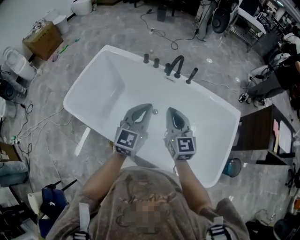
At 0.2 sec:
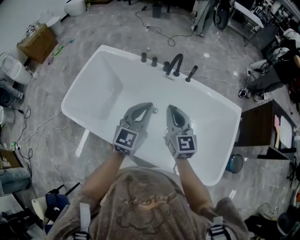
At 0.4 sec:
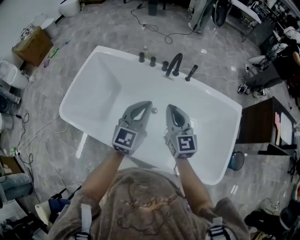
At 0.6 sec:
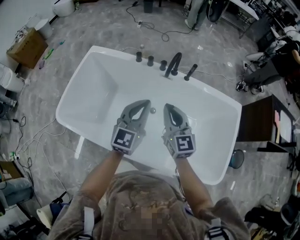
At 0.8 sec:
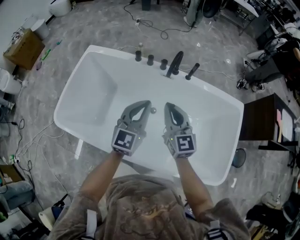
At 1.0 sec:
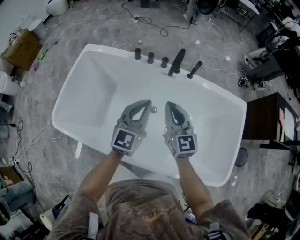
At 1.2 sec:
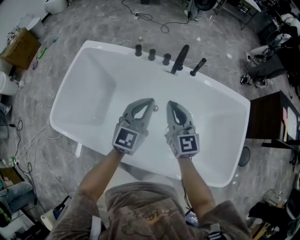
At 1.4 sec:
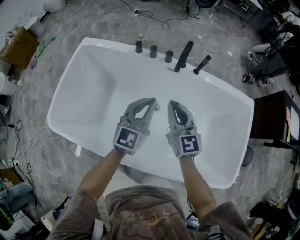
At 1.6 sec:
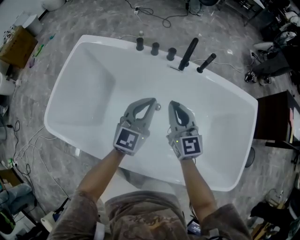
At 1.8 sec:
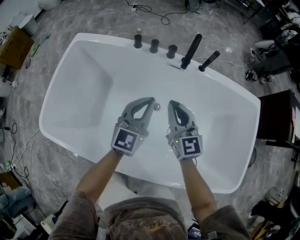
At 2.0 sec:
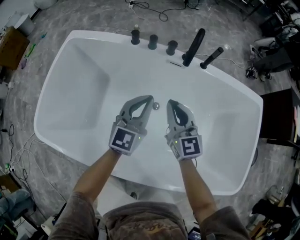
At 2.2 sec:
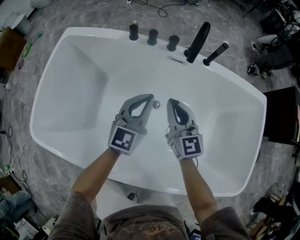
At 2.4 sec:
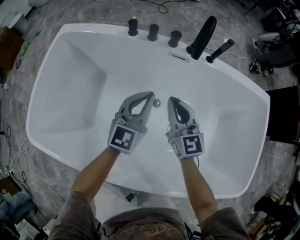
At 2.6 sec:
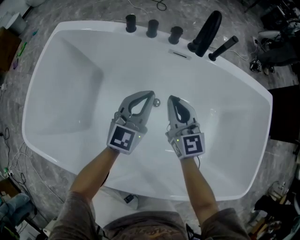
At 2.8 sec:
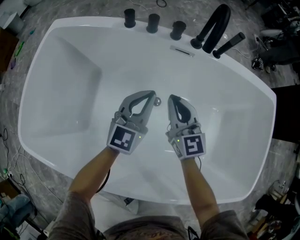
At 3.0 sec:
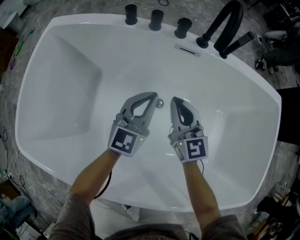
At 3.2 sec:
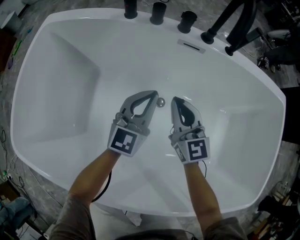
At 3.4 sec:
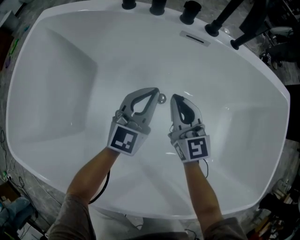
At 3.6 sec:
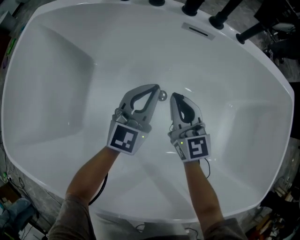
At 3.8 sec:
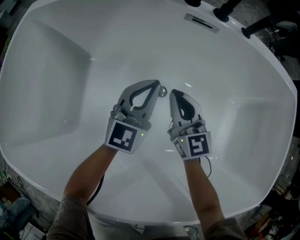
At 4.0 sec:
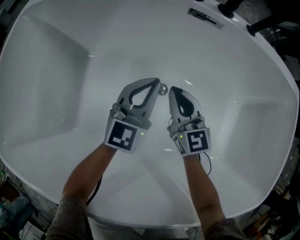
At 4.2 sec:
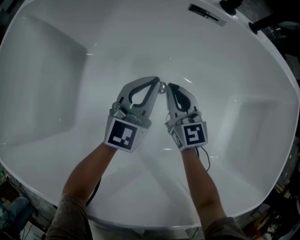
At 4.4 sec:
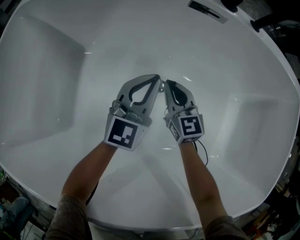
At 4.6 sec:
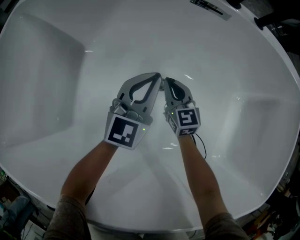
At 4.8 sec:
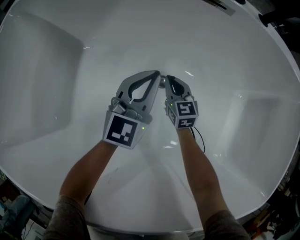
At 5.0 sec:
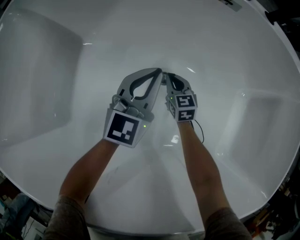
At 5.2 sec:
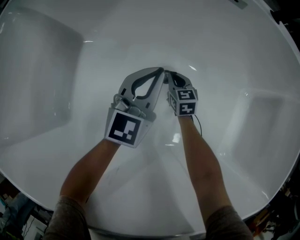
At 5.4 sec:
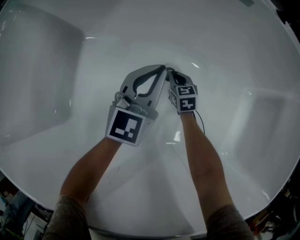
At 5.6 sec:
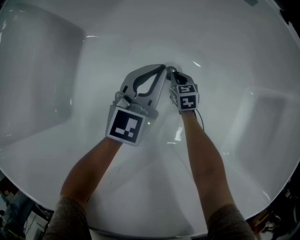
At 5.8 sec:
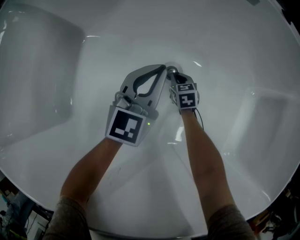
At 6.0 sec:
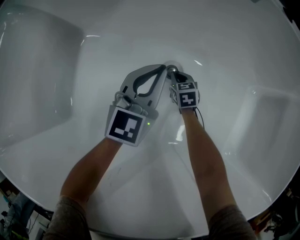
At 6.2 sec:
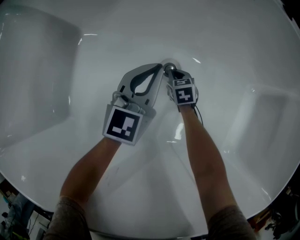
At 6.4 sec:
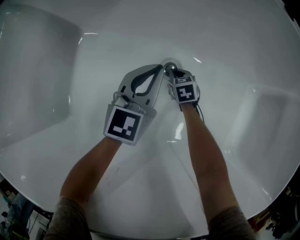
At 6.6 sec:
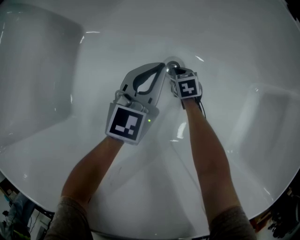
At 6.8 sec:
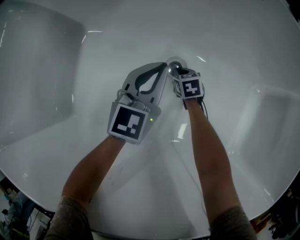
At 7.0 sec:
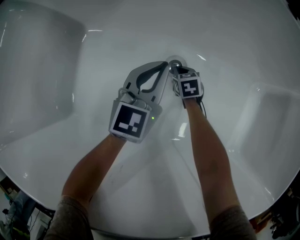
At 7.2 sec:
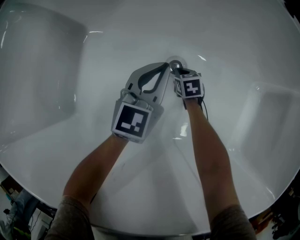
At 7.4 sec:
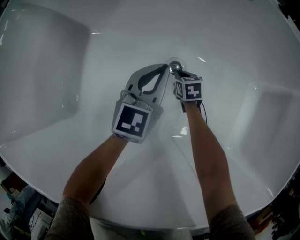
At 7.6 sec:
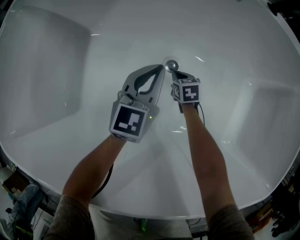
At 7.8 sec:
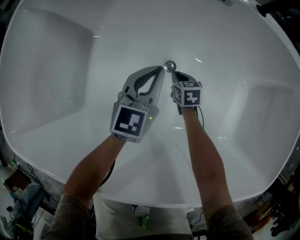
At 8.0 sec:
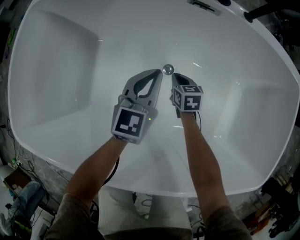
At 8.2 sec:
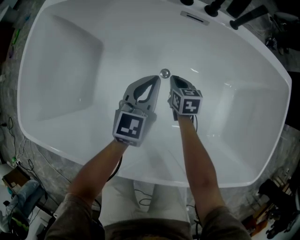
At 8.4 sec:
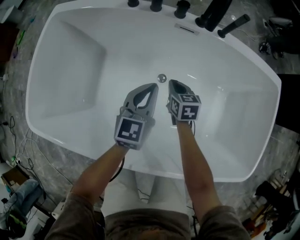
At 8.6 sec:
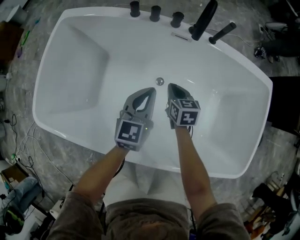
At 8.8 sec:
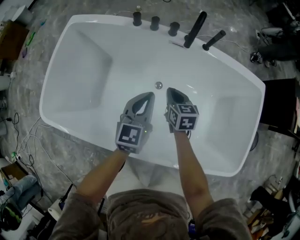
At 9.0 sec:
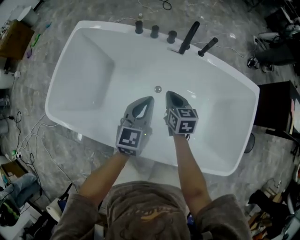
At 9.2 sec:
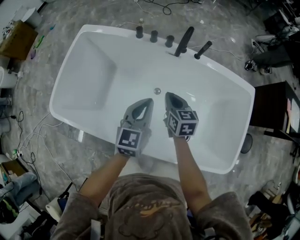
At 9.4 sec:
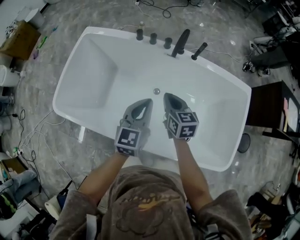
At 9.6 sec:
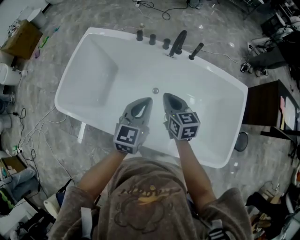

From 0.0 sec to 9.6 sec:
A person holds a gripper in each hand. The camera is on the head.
From 0.0 sec to 1.6 sec: The left gripper is displaced downward and forward by roughly 20 cm. Meanwhile the right gripper moves downward, forward and to the left, some 20 cm.
From 1.6 sec to 3.2 sec: Both grippers travel together downward, some 25 cm.
From 3.2 sec to 4.8 sec: The left gripper travels downward by about 15 cm. The right gripper travels downward by approximately 30 cm, and changes its angle by approximately 20 degrees.
From 4.8 sec to 6.4 sec: The left gripper moves downward, some 10 cm. The right gripper moves downward, approximately 15 cm, and swivels roughly 30 degrees.
From 6.4 sec to 8.0 sec: Both grippers move upward, some 20 cm.
From 8.0 sec to 9.6 sec: The right gripper shifts roughly 60 cm upward, and swivels some 20 degrees. Meanwhile the left gripper heads upward and backward, covering some 40 cm.

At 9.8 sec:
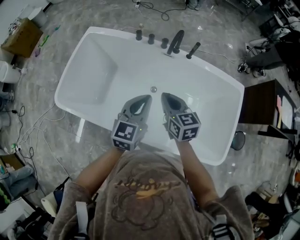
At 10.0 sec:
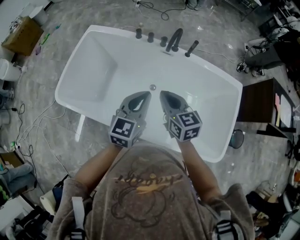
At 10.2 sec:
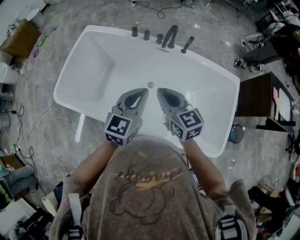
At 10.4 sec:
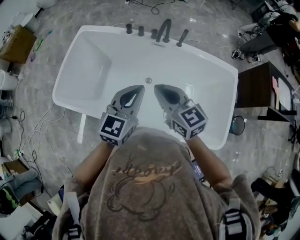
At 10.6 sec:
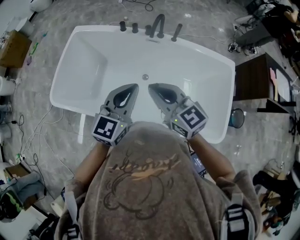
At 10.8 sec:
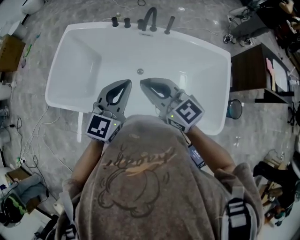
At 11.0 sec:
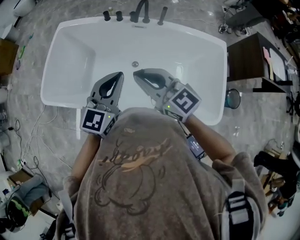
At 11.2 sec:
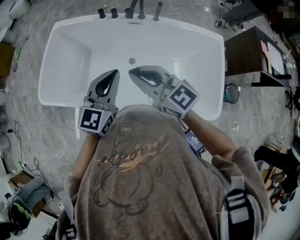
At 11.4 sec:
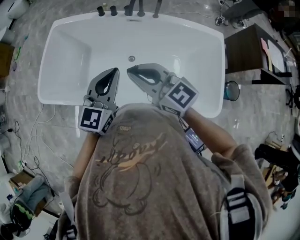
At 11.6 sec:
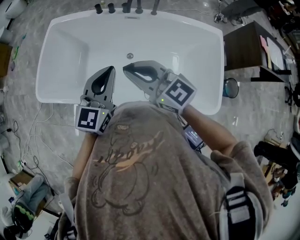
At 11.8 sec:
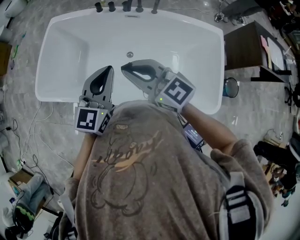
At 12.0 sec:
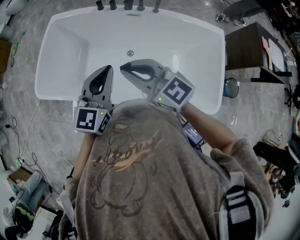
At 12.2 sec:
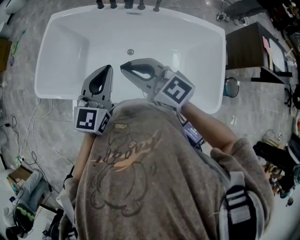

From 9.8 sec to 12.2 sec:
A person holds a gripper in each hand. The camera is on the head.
From 9.8 sec to 11.0 sec: The left gripper is displaced backward and upward by some 10 cm. The right gripper heads upward and backward, covering about 15 cm, and turns by some 30 degrees.
From 11.0 sec to 12.2 sec: The grippers make only small movements.

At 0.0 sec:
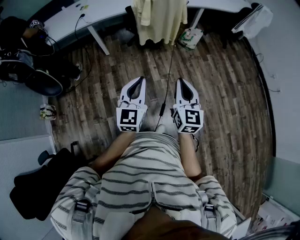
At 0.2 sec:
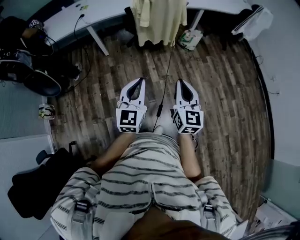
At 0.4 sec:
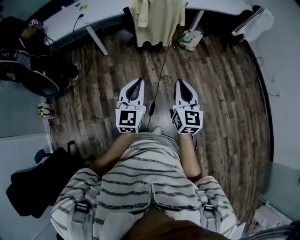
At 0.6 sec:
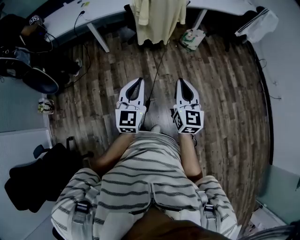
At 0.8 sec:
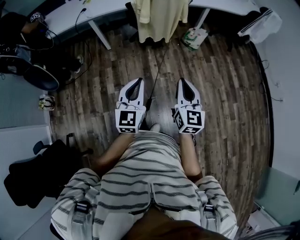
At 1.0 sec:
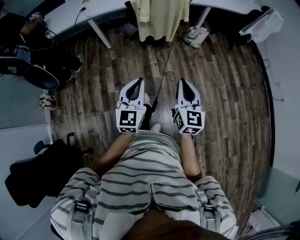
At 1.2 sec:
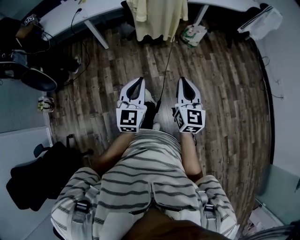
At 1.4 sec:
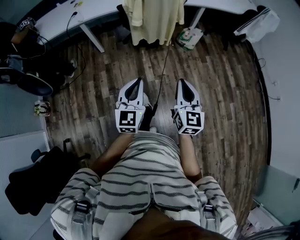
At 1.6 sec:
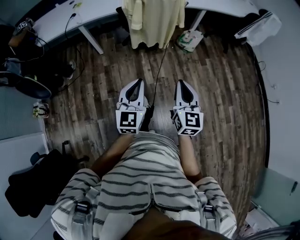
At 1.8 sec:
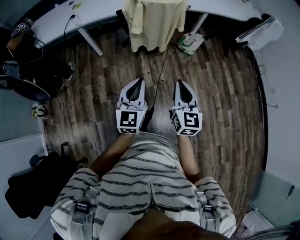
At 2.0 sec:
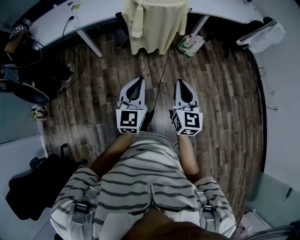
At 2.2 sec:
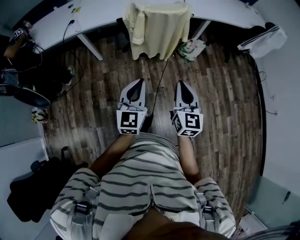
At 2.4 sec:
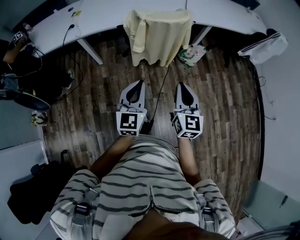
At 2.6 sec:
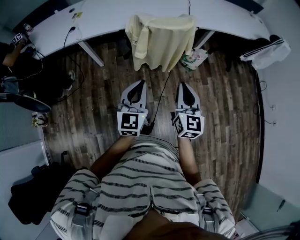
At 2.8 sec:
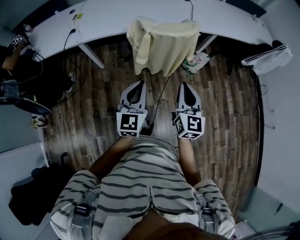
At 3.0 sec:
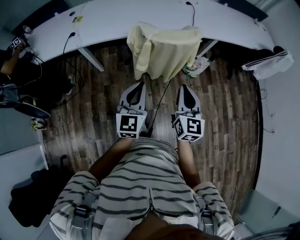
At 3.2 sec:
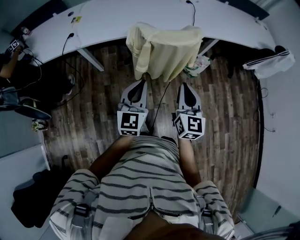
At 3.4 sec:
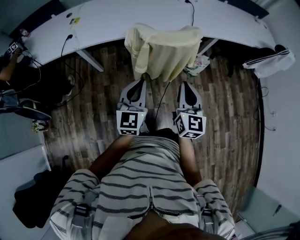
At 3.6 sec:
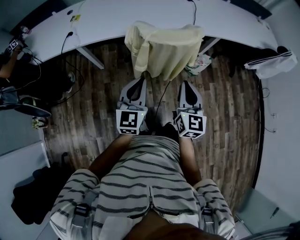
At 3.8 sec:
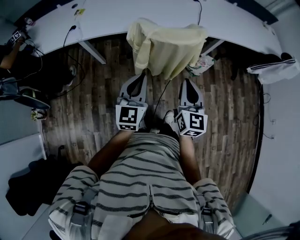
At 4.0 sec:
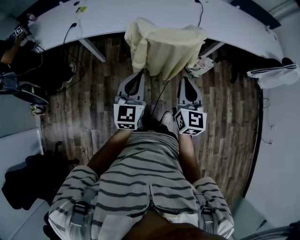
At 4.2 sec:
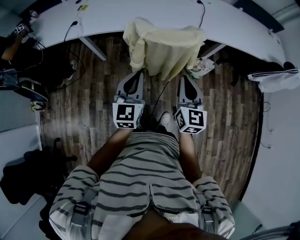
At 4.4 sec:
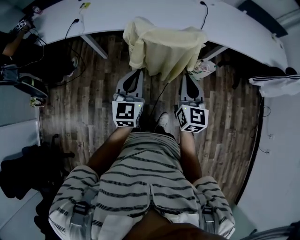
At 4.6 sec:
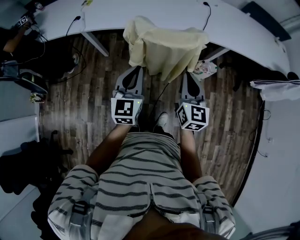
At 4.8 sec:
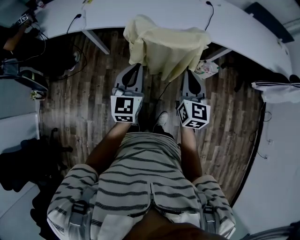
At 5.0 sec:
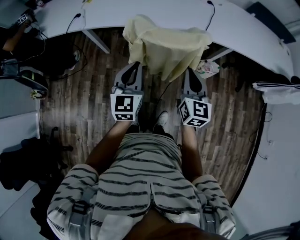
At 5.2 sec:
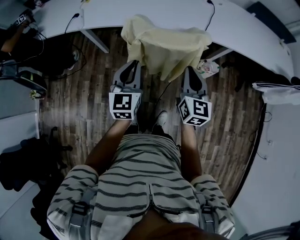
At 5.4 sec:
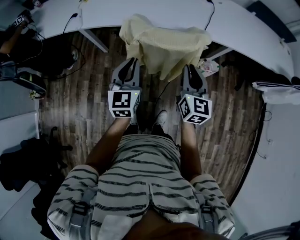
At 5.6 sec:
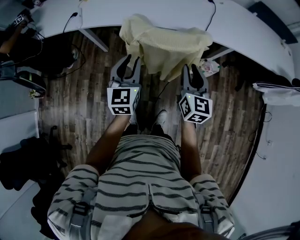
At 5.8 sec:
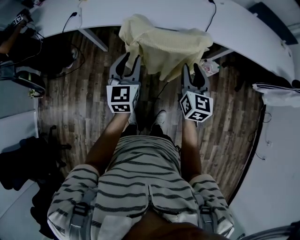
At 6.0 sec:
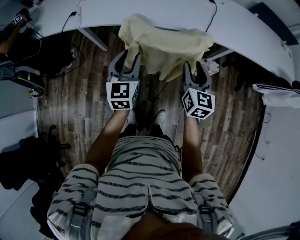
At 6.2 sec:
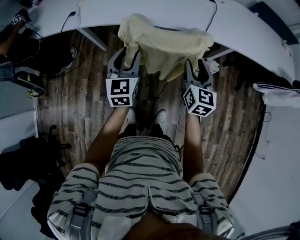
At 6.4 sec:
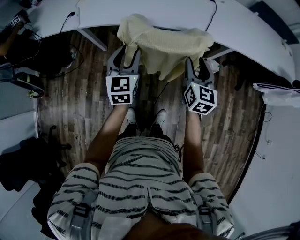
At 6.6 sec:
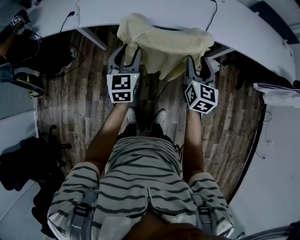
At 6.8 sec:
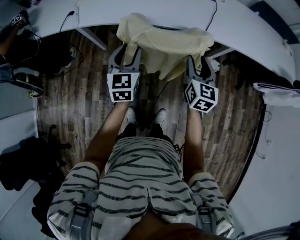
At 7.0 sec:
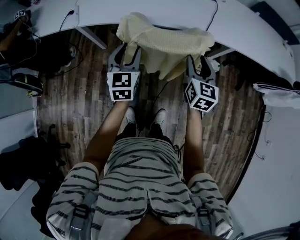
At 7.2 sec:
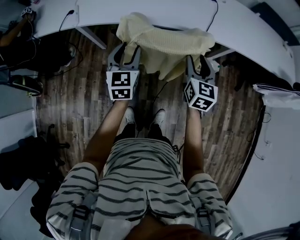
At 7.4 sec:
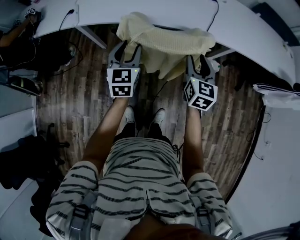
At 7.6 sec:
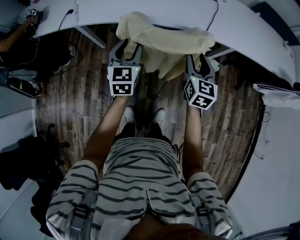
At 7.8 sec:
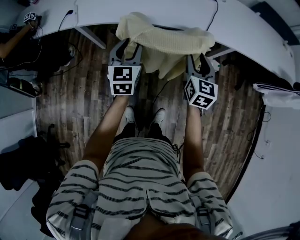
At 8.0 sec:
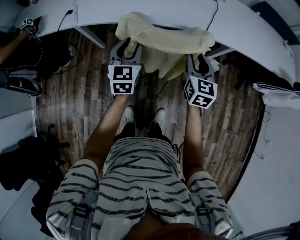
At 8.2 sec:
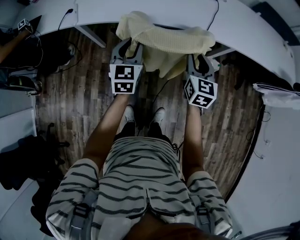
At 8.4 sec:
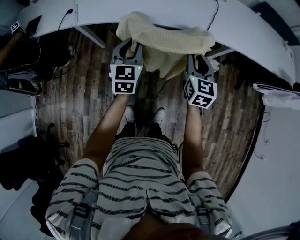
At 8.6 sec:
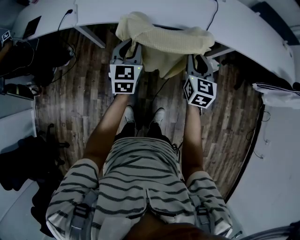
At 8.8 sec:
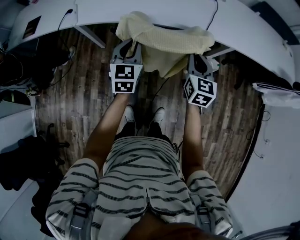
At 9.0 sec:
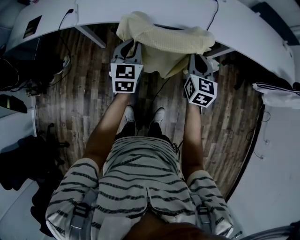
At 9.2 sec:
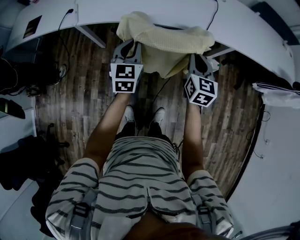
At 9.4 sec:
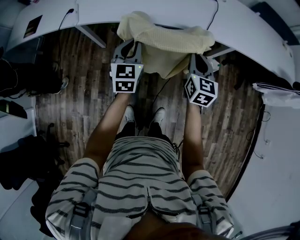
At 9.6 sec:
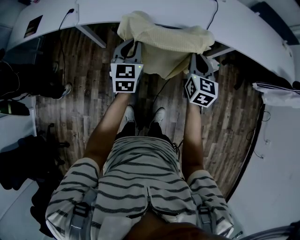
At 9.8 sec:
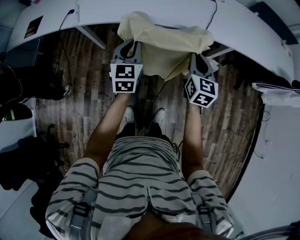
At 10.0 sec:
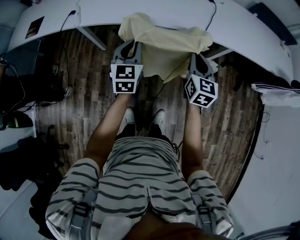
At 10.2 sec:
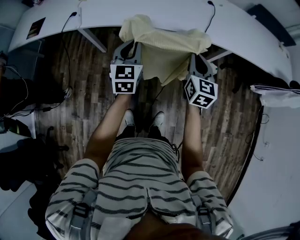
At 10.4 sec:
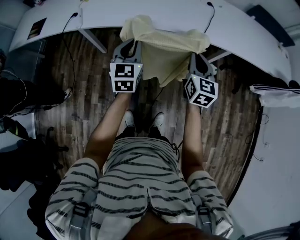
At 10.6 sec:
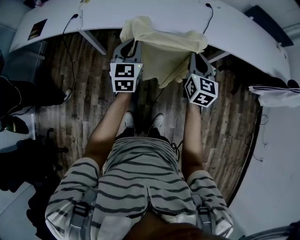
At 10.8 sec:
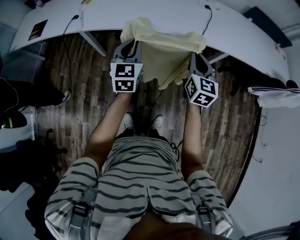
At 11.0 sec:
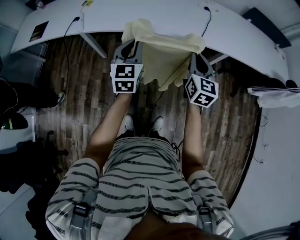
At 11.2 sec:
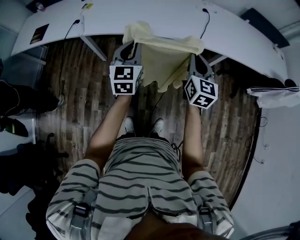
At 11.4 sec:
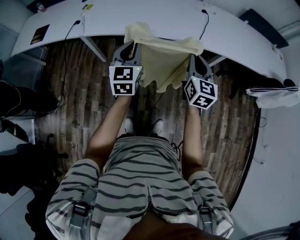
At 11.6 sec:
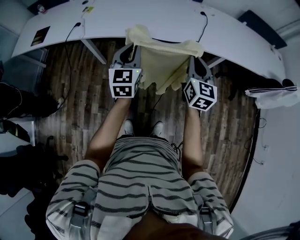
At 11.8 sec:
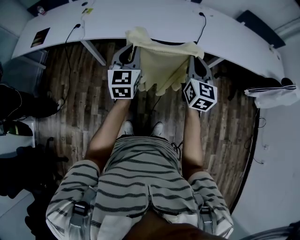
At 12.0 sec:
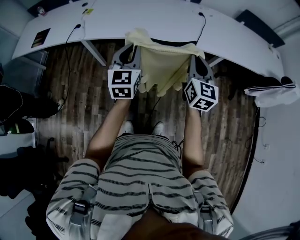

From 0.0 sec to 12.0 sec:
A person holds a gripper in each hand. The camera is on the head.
From 0.0 sec to 1.6 sec: The grippers both shift forward and to the right by approximately 15 cm.
From 1.6 sec to 3.0 sec: The two grippers go roughly 30 cm forward.
From 3.0 sec to 4.4 sec: The grippers both shift forward and to the right by about 10 cm.
From 4.4 sec to 6.0 sec: The two grippers go roughly 10 cm forward. The left gripper opens. Meanwhile the right gripper opens its fingers.
From 6.0 sec to 7.6 sec: The right gripper ends up approximately 5 cm from where it was; the left gripper goes some 5 cm forward.
From 7.6 sec to 9.0 sec: The left gripper closes its fingers; the right gripper closes up.
From 9.0 sec to 10.4 sec: The grippers stay close to where they were, moving slightly.
From 10.4 sec to 12.0 sec: The grippers both shift upward by about 5 cm.
